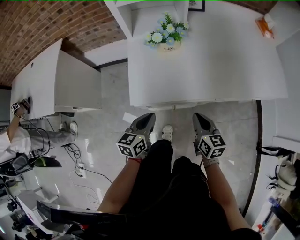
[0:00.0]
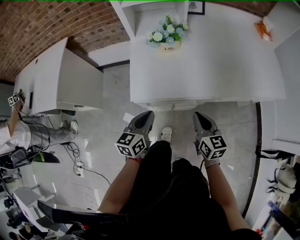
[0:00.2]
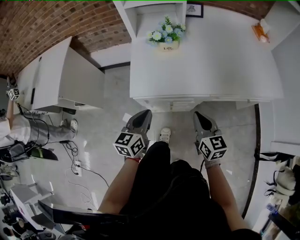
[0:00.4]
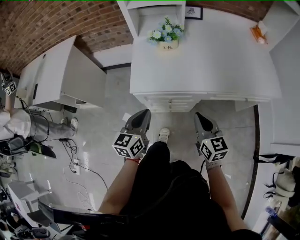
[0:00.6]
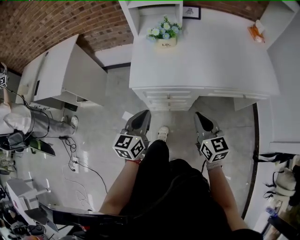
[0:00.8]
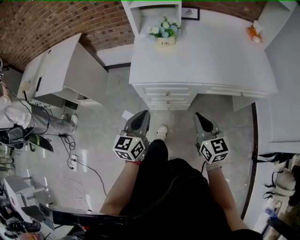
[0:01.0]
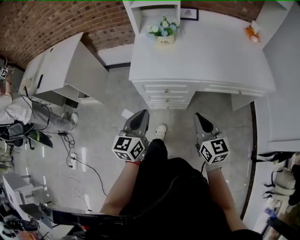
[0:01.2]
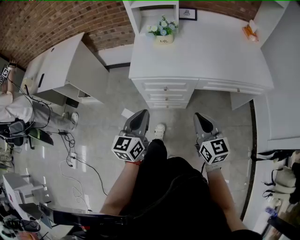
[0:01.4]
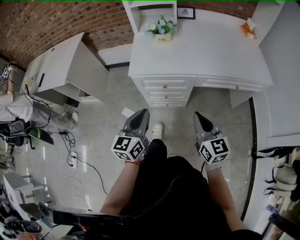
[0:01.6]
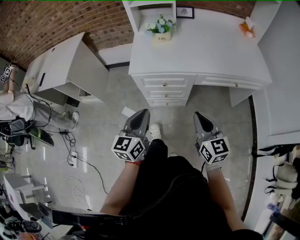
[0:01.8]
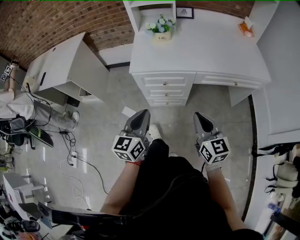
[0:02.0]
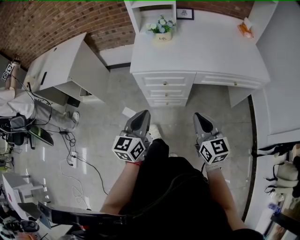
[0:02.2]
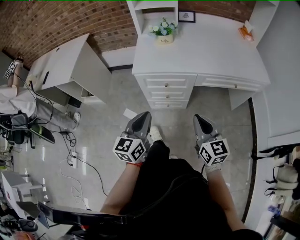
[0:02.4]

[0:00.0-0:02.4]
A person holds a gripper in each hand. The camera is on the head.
0:00.0 to 0:01.2: The grippers both shift backward and upward by roughly 20 cm. The left gripper changes its angle by roughly 20 degrees; the right gripper rotates about 20 degrees.
0:01.2 to 0:02.4: The grippers both shift backward by approximately 10 cm.

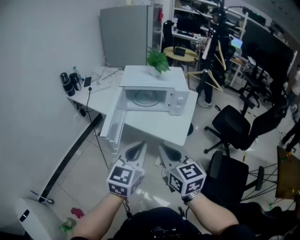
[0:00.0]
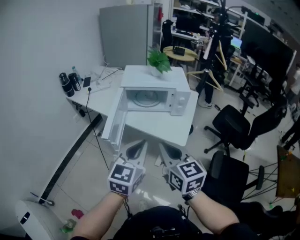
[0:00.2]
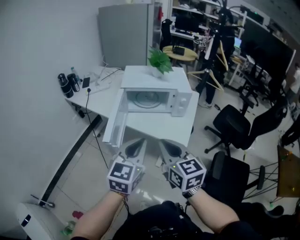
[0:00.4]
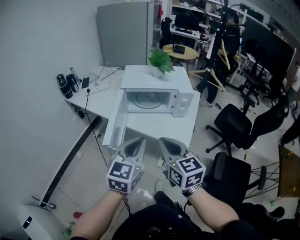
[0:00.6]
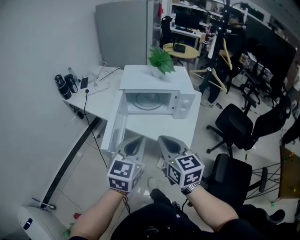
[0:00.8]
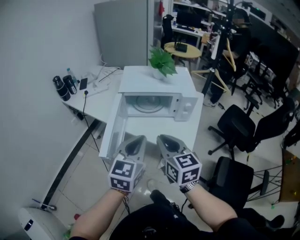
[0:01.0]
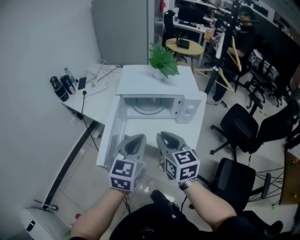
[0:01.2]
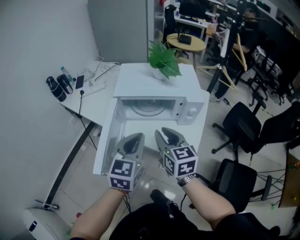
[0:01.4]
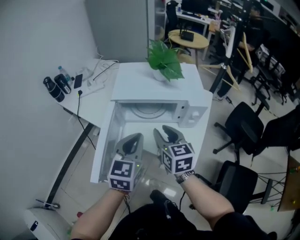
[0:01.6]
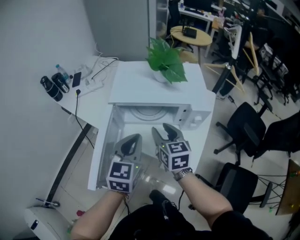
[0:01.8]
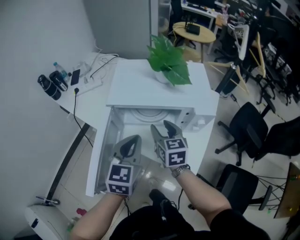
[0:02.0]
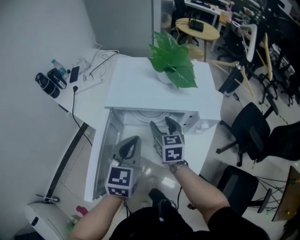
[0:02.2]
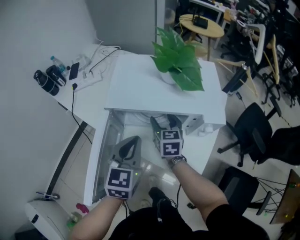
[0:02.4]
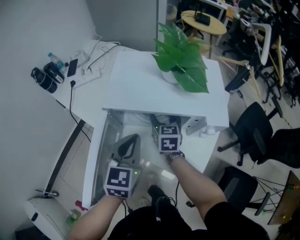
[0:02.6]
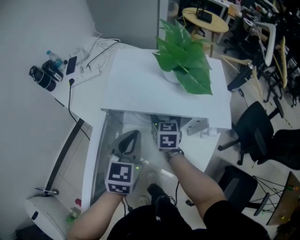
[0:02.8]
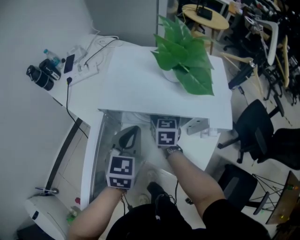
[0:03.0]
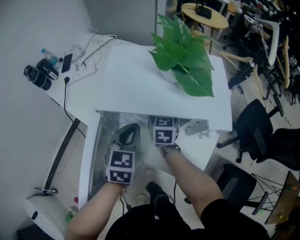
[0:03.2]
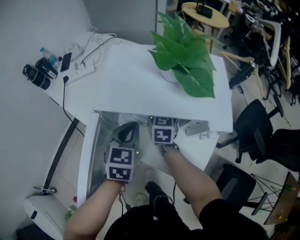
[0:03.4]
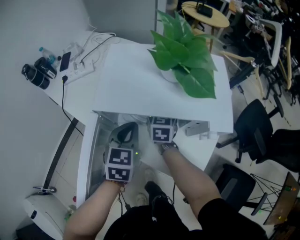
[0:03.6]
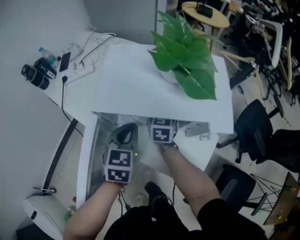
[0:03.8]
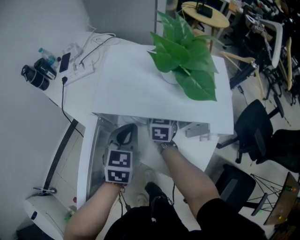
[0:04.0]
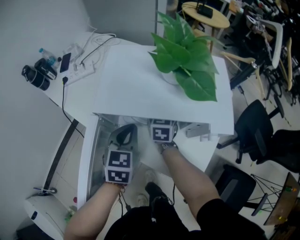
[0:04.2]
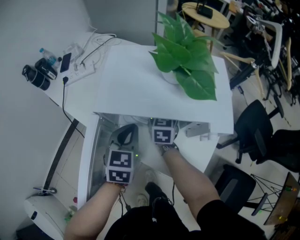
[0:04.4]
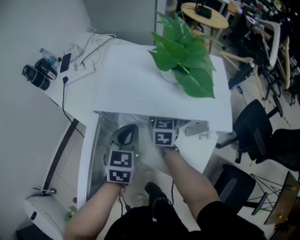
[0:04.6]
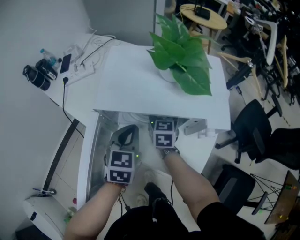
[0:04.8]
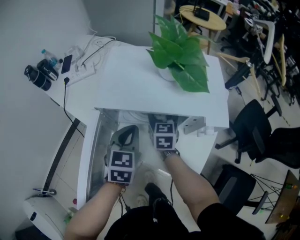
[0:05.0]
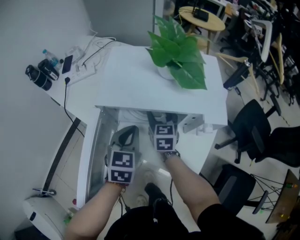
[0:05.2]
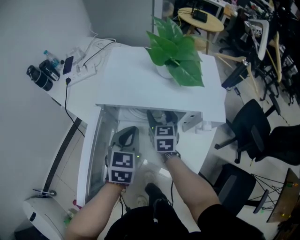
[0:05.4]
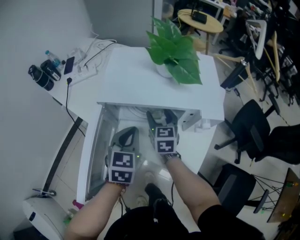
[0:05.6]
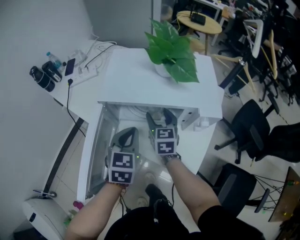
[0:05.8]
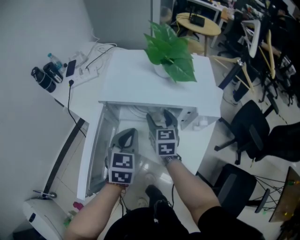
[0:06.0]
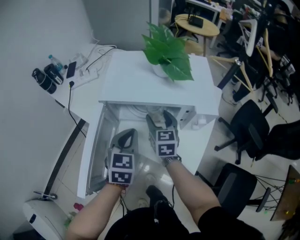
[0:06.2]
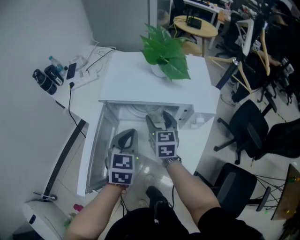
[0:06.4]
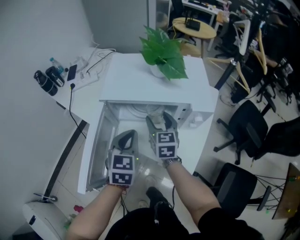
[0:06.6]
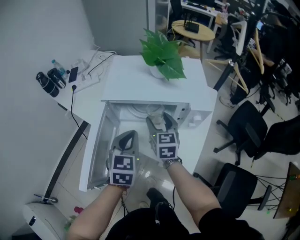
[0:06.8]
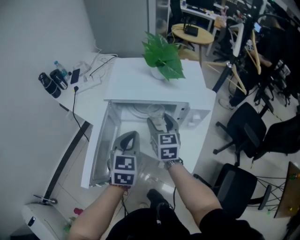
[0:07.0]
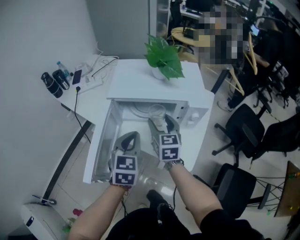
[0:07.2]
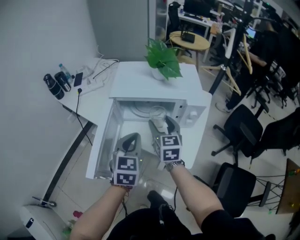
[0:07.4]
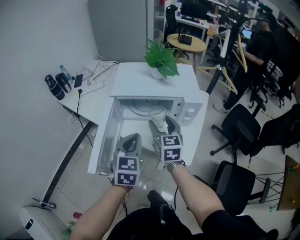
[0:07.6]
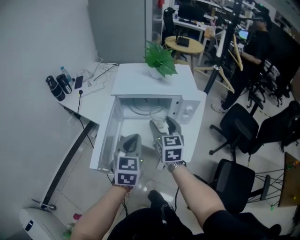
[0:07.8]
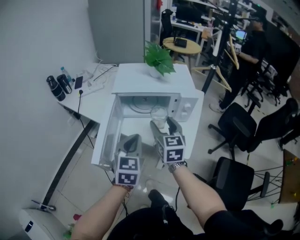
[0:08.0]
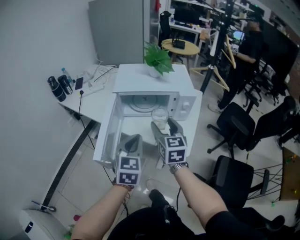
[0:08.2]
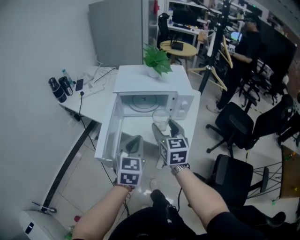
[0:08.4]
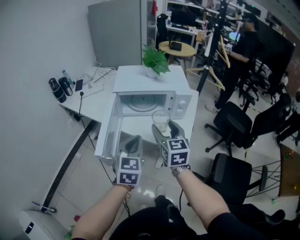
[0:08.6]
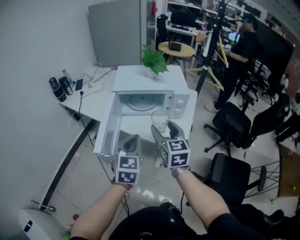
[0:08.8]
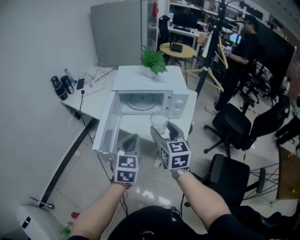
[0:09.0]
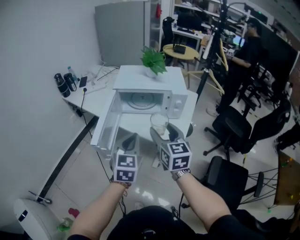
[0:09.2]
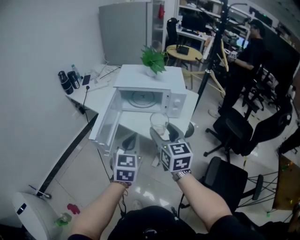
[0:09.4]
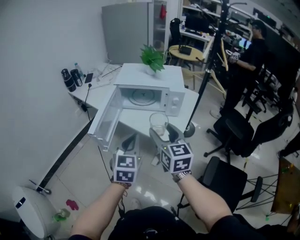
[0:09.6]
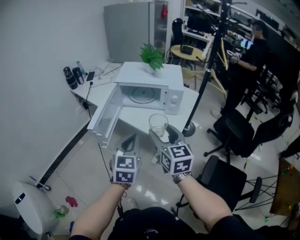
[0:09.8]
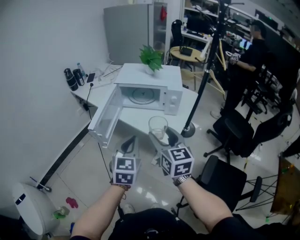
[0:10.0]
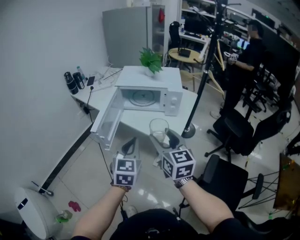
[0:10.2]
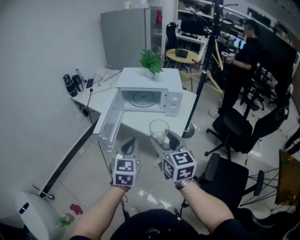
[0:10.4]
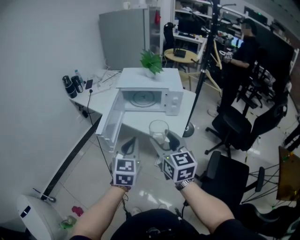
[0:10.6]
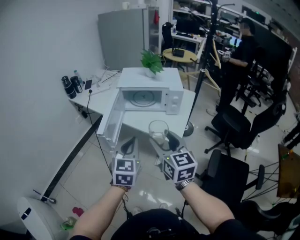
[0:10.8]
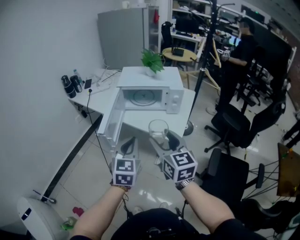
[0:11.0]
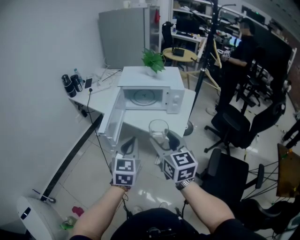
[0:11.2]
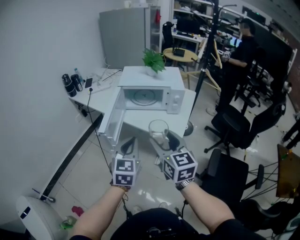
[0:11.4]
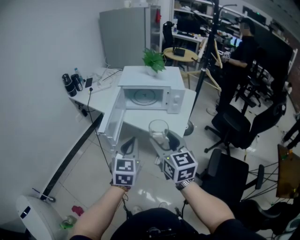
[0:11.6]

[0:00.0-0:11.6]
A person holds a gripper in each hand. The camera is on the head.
0:00.0 to 0:01.4: Both grippers travel together forward, approximately 25 cm.
0:01.4 to 0:02.8: The left gripper goes about 15 cm forward and downward; the right gripper shifts about 30 cm forward and downward, and opens.
0:02.8 to 0:04.4: The left gripper changes place by some 5 cm.
0:04.4 to 0:05.8: The left gripper shifts approximately 5 cm backward; the right gripper moves backward, approximately 10 cm.
0:05.8 to 0:07.2: Both grippers travel together backward and upward, roughly 10 cm.
0:07.2 to 0:08.8: The right gripper travels backward and upward by roughly 20 cm. Meanwhile the left gripper heads backward, covering roughly 15 cm.
0:08.8 to 0:10.2: Both grippers move backward, about 10 cm.
0:10.2 to 0:11.6: The grippers both shift to the left by roughly 5 cm.

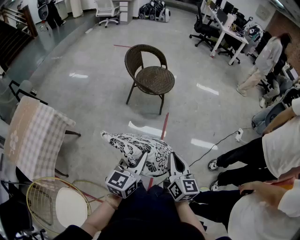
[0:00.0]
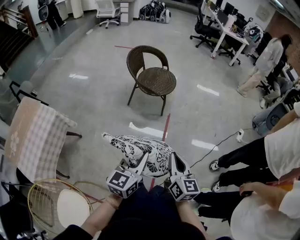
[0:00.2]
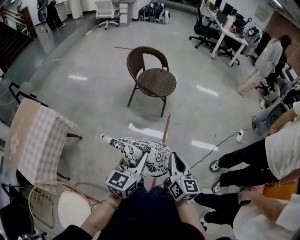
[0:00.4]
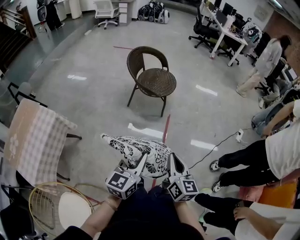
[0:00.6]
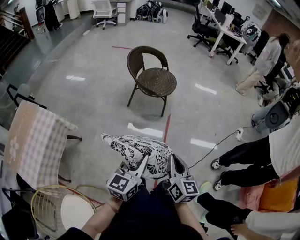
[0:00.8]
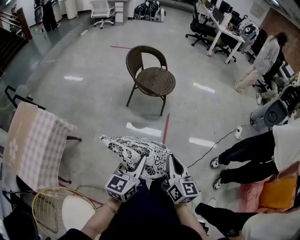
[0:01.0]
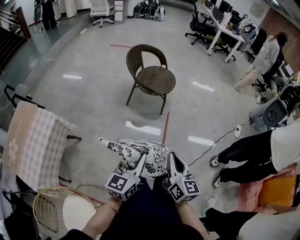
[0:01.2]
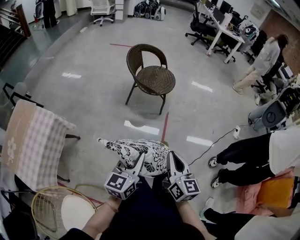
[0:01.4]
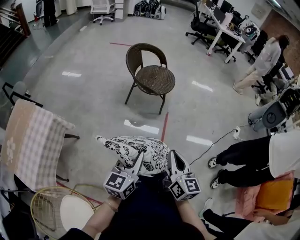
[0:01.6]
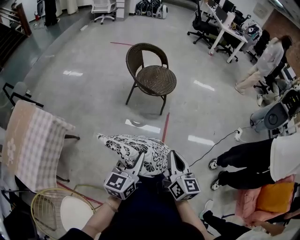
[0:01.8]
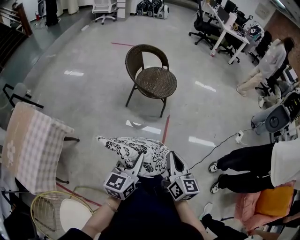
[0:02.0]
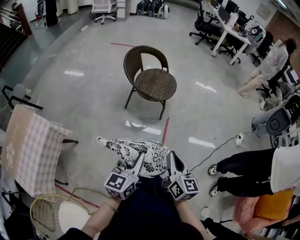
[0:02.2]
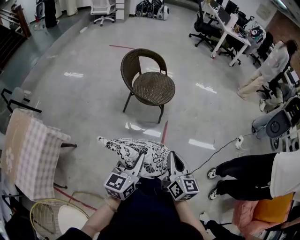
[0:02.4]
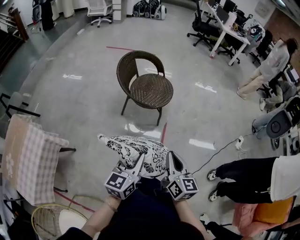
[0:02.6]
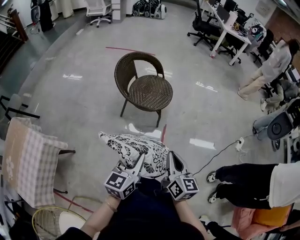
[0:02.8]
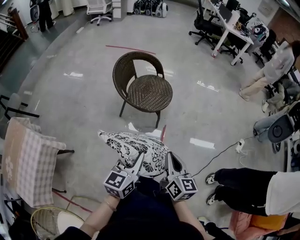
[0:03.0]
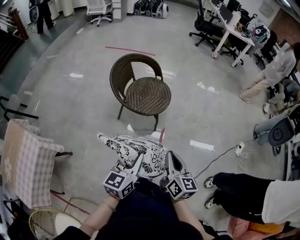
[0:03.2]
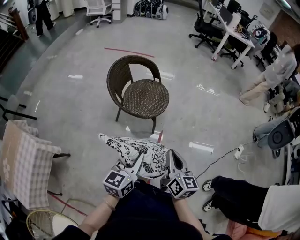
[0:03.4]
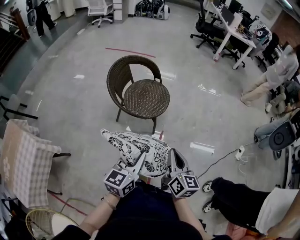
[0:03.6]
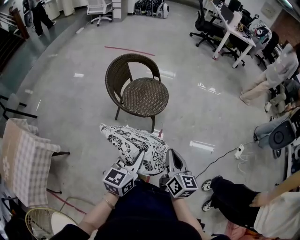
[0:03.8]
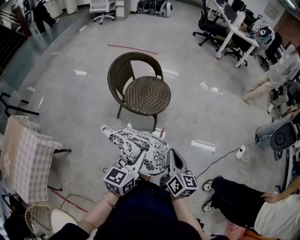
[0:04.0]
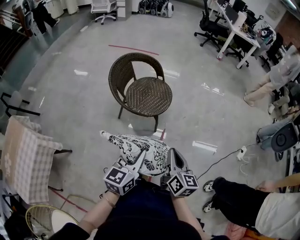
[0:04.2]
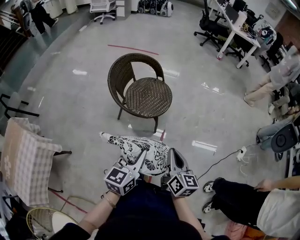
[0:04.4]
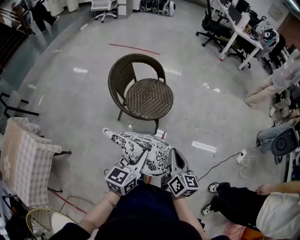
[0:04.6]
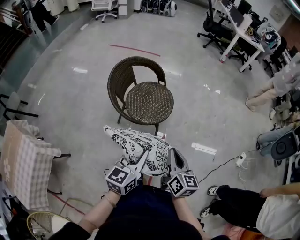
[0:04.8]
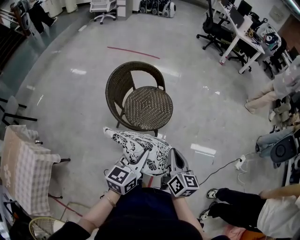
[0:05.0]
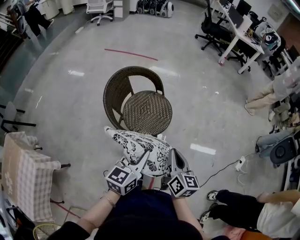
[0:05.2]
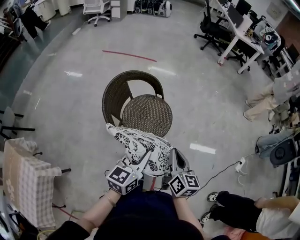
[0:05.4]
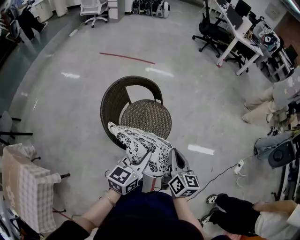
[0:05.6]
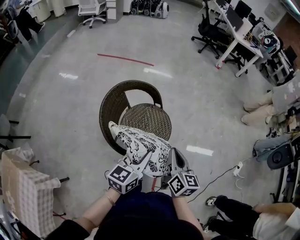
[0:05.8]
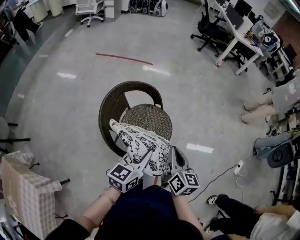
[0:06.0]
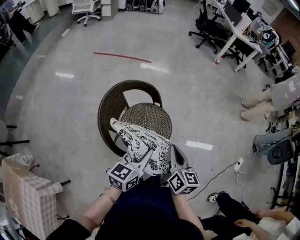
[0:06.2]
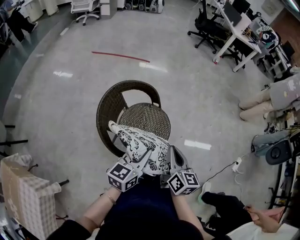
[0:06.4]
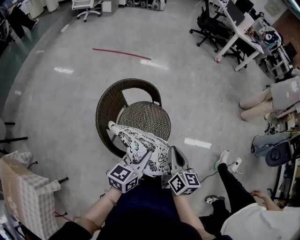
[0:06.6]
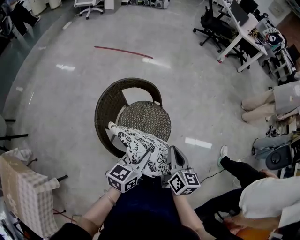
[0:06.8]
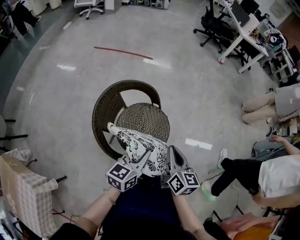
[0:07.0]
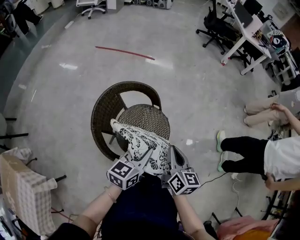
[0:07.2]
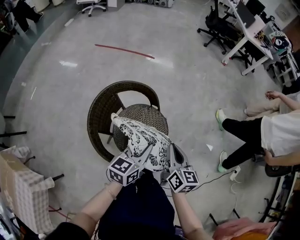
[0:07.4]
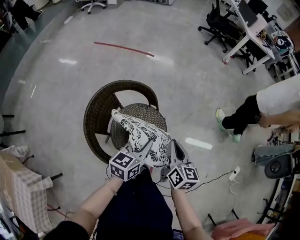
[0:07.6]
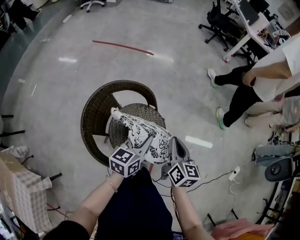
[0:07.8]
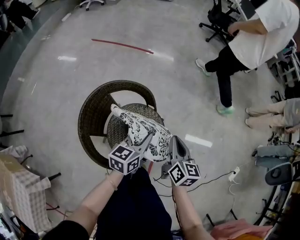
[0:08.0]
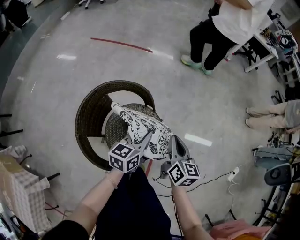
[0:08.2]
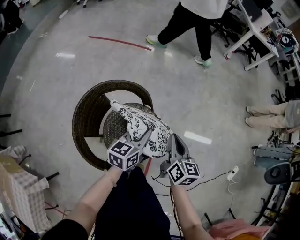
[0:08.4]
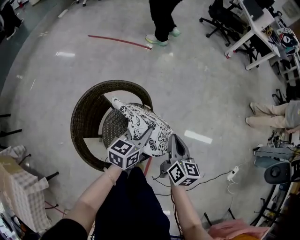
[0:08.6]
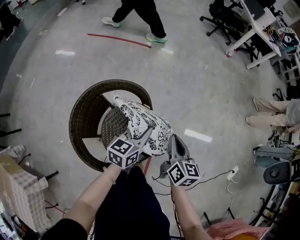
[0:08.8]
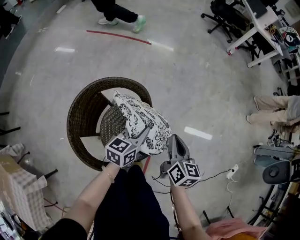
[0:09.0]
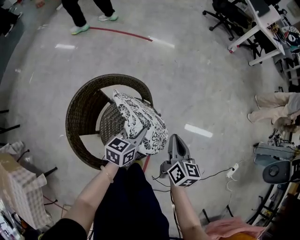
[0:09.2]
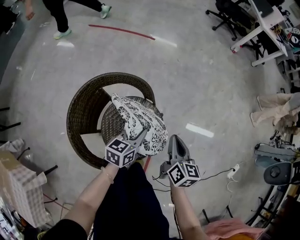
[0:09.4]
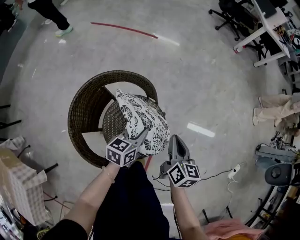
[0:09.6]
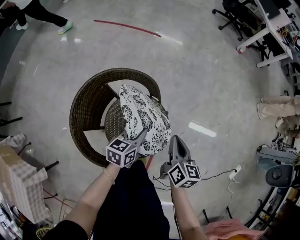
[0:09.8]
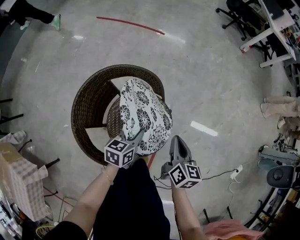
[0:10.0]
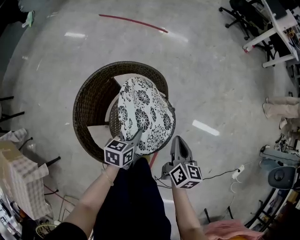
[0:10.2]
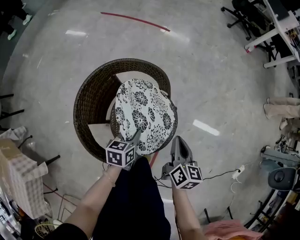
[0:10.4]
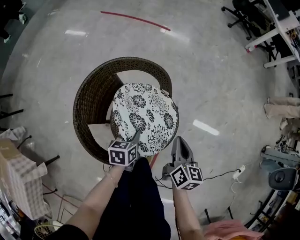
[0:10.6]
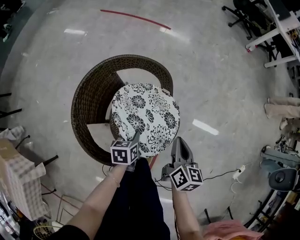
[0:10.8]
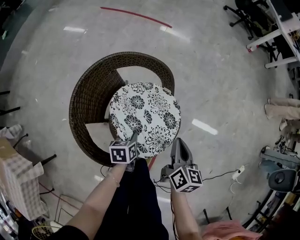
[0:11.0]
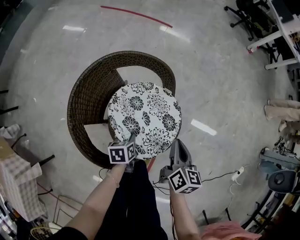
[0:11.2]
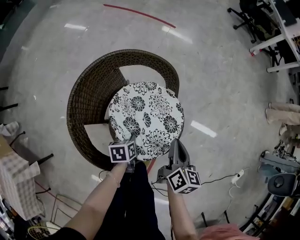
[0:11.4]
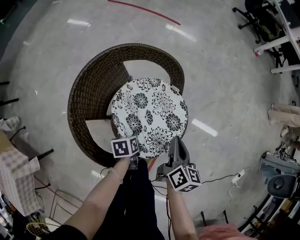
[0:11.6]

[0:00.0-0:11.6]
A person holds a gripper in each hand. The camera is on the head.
0:00.0 to 0:01.4: Both grippers move to the left, about 5 cm.
0:01.4 to 0:02.8: Both grippers travel together forward, some 20 cm.
0:02.8 to 0:04.4: The two grippers go approximately 10 cm forward.
0:04.4 to 0:05.8: Both grippers travel together forward, roughly 25 cm.
0:05.8 to 0:07.2: Both grippers move forward, approximately 10 cm.
0:07.2 to 0:08.8: Both grippers move forward and downward, approximately 15 cm.
0:08.8 to 0:10.2: The left gripper heads downward, backward and to the left, covering about 15 cm, and turns by roughly 20 degrees, while the right gripper goes about 5 cm downward.
0:10.2 to 0:11.6: The right gripper heads downward and to the left, covering some 10 cm. The left gripper shifts some 20 cm downward and backward, and swivels approximately 40 degrees.
